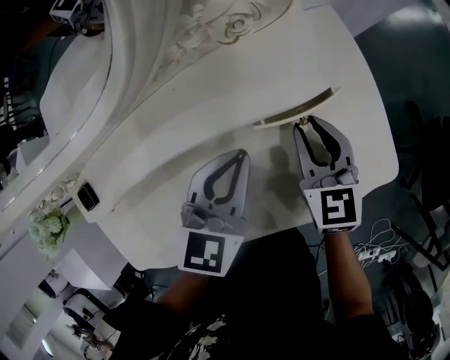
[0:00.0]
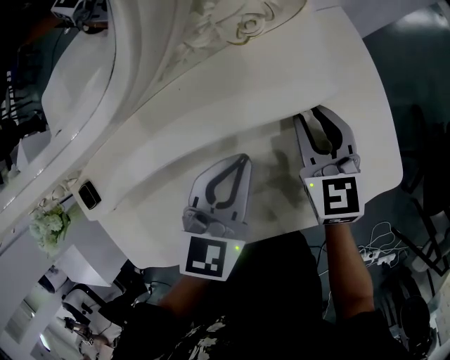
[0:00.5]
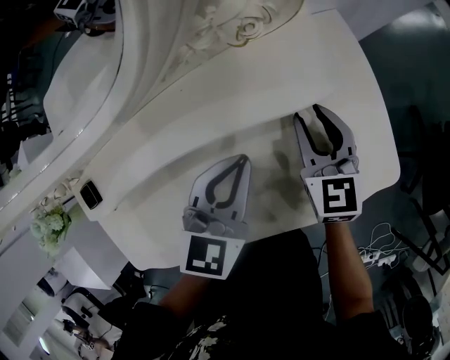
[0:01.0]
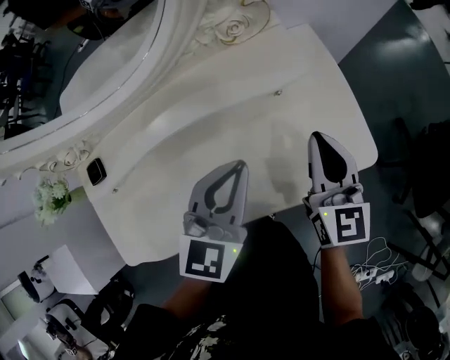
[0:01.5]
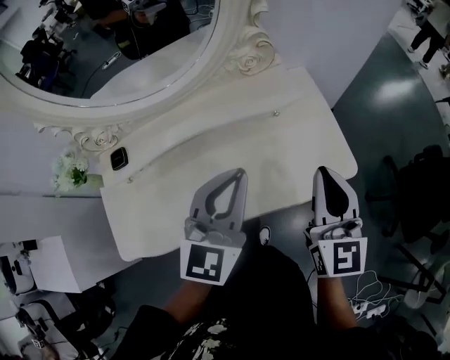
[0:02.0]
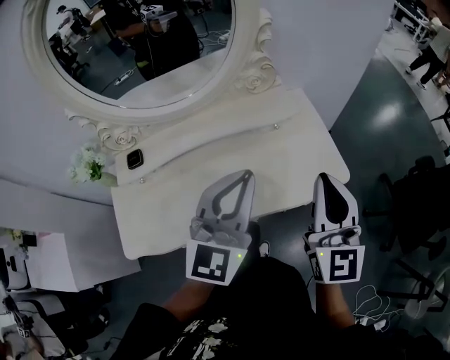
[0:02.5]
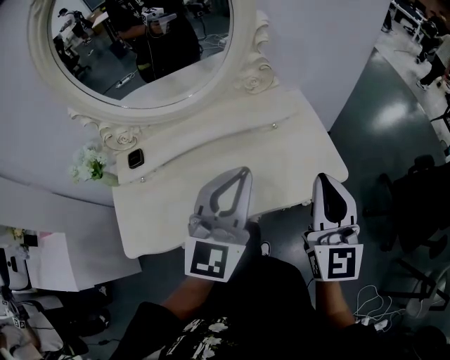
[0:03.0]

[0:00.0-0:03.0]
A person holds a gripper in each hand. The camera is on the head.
0:00.0 to 0:01.5: The two grippers go approximately 10 cm upward and backward. The right gripper closes its fingers.
0:01.5 to 0:03.0: Both grippers travel together upward and backward, approximately 20 cm. The left gripper swivels roughly 20 degrees. Meanwhile the right gripper swivels approximately 20 degrees.

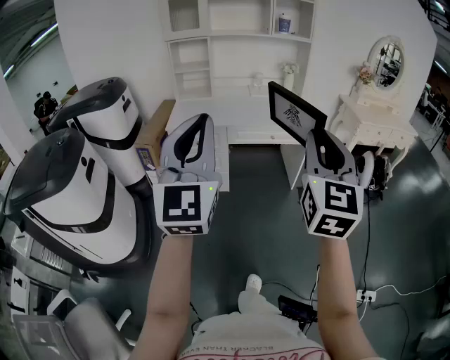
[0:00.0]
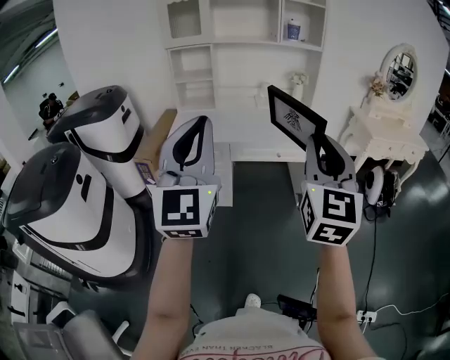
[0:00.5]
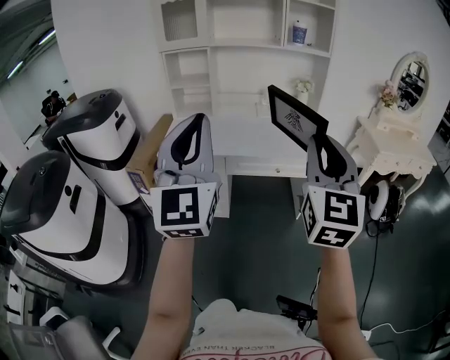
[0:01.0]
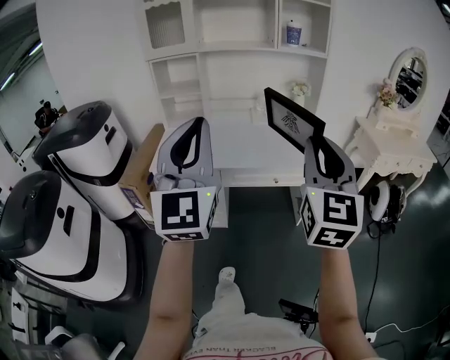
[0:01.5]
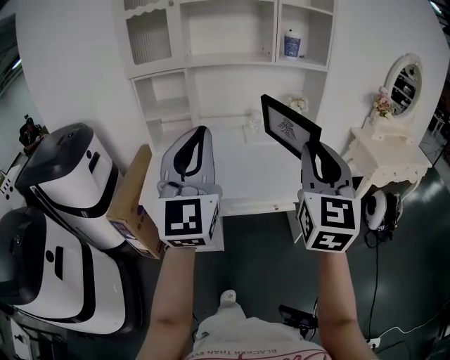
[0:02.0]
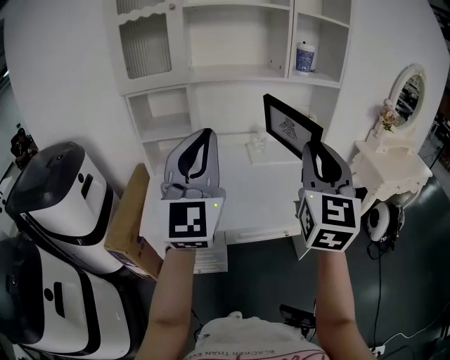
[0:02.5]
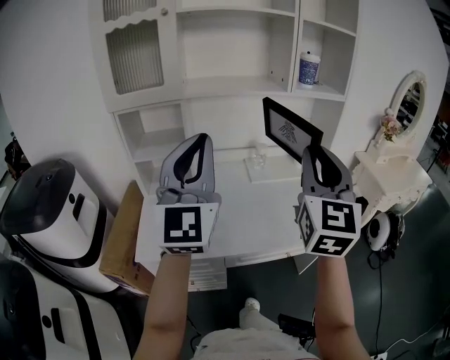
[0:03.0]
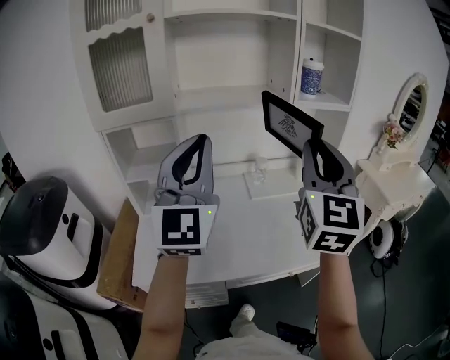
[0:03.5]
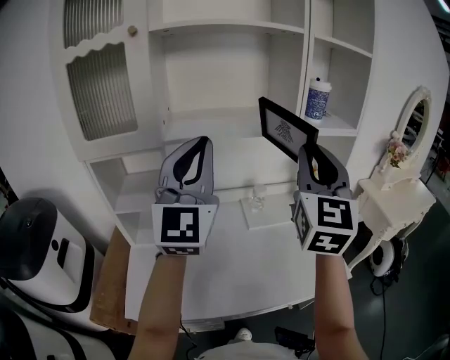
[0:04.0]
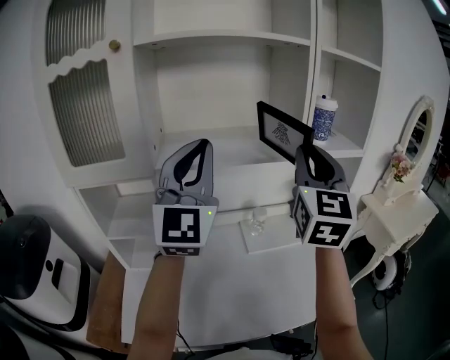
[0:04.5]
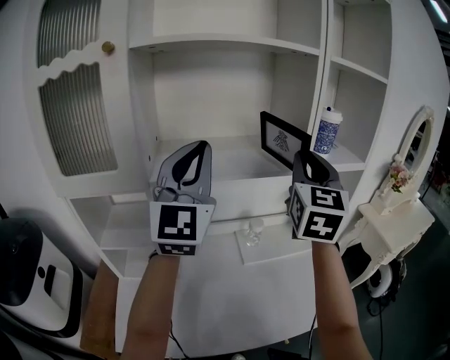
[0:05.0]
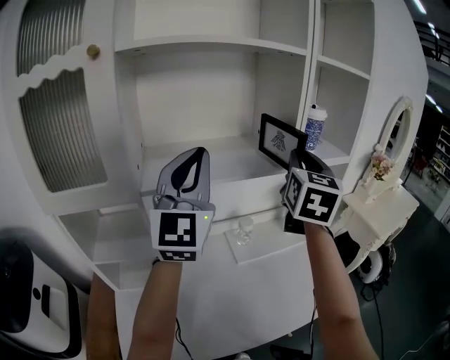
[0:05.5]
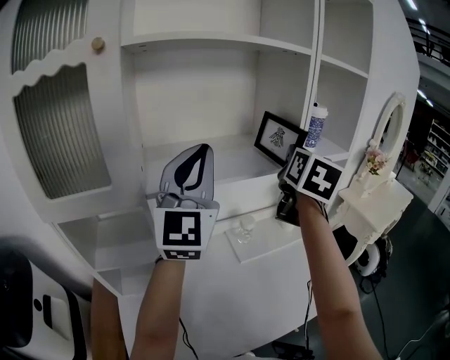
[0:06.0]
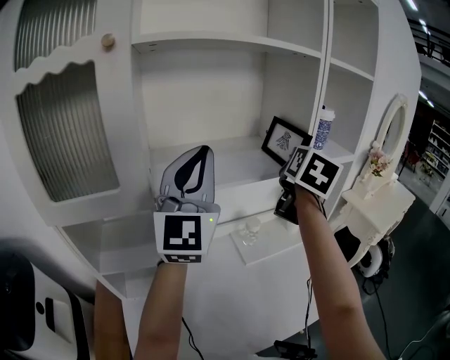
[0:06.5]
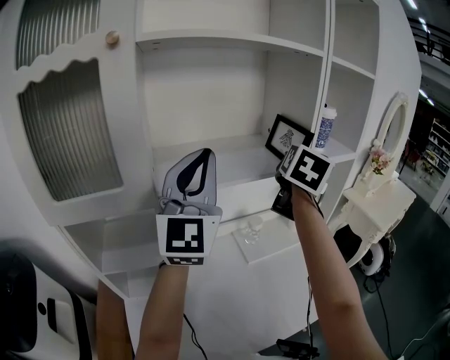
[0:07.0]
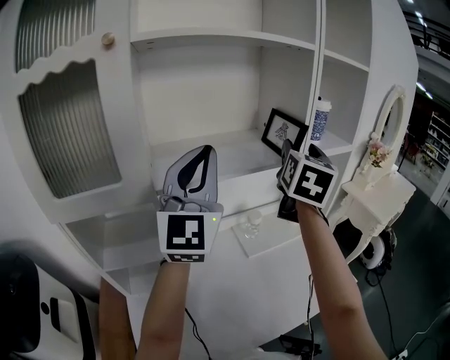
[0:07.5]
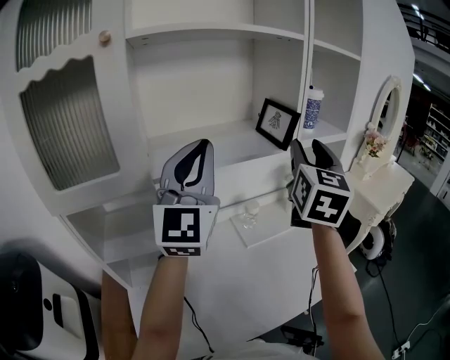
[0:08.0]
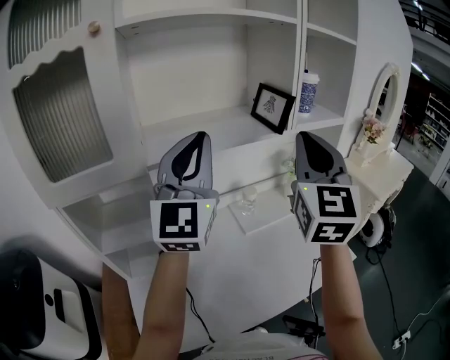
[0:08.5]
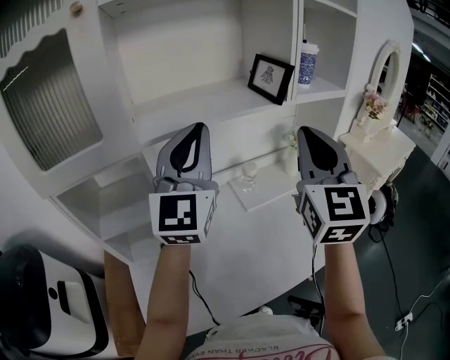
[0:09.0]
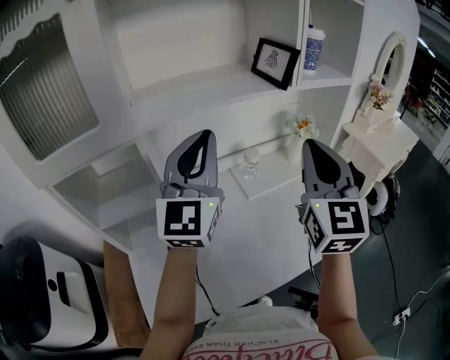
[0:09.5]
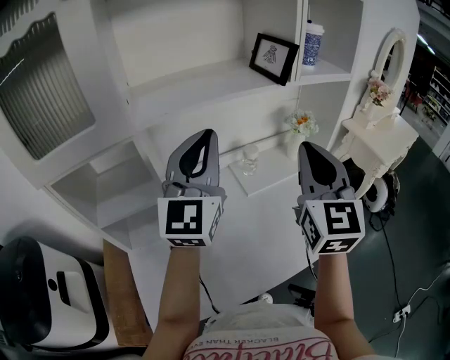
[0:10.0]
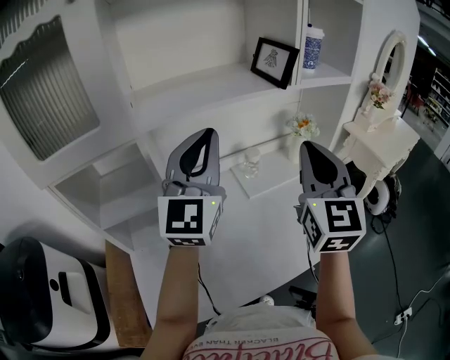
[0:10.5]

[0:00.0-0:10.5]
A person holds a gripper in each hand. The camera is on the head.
0:00.0 to 0:02.0: Both grippers are carried forward, roughly 40 cm.
0:02.0 to 0:04.0: The two grippers go about 40 cm forward.
0:04.0 to 0:06.5: The left gripper travels forward and to the left by roughly 15 cm. Meanwhile the right gripper goes approximately 20 cm forward, and changes its angle by some 40 degrees.
0:06.5 to 0:08.5: The right gripper travels backward by approximately 15 cm, rotates some 40 degrees, and opens, then closes again, while the left gripper shifts by some 5 cm.
0:08.5 to 0:10.5: The two grippers go some 10 cm downward.

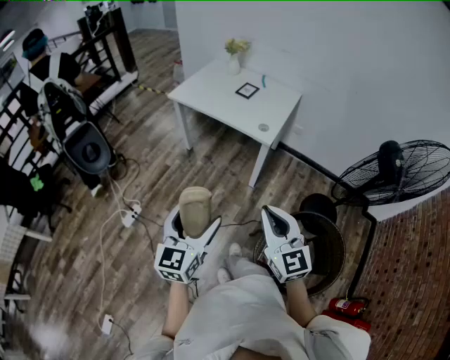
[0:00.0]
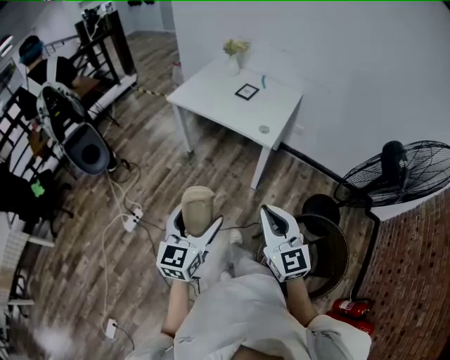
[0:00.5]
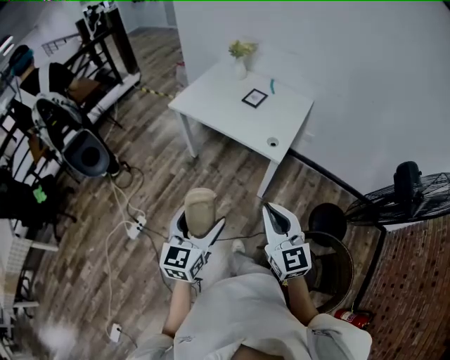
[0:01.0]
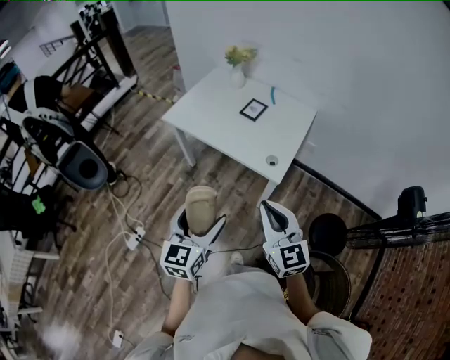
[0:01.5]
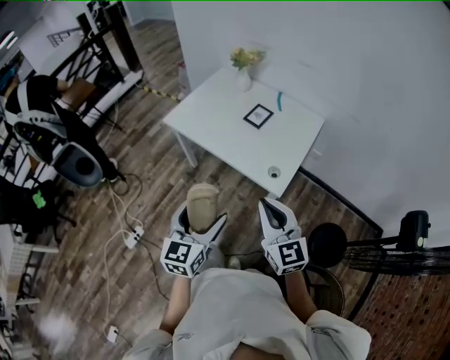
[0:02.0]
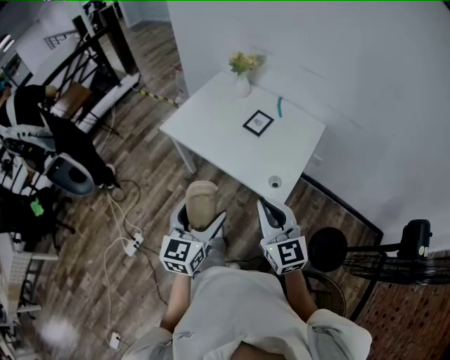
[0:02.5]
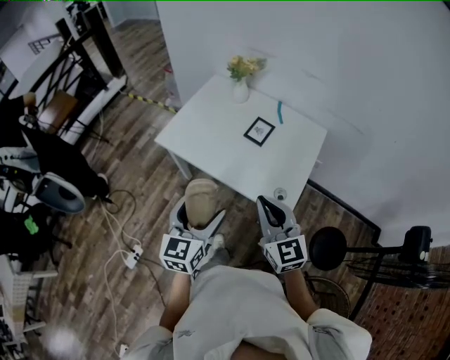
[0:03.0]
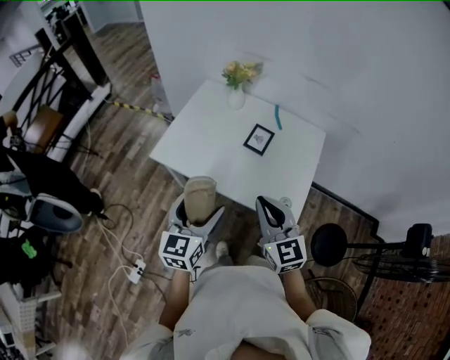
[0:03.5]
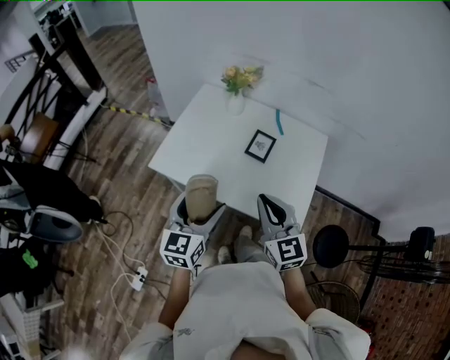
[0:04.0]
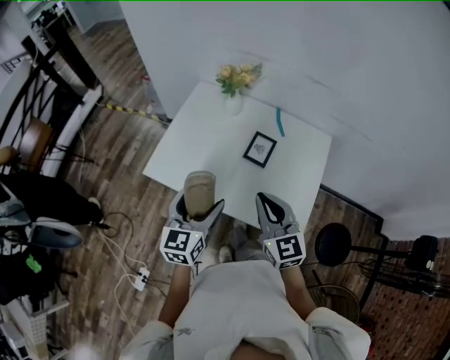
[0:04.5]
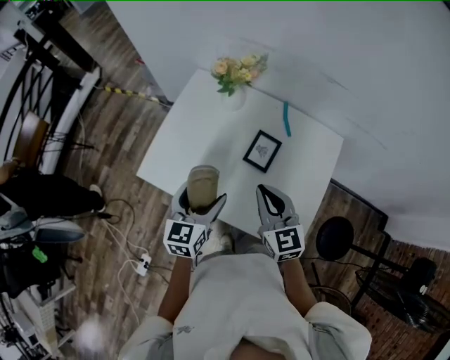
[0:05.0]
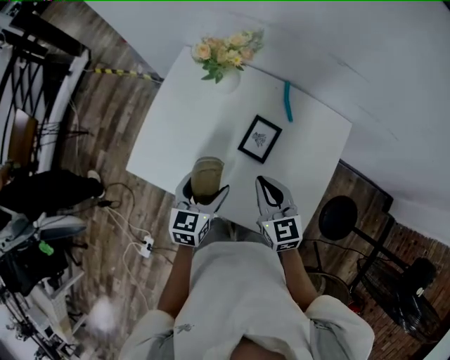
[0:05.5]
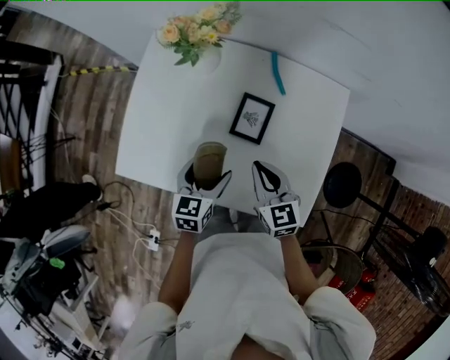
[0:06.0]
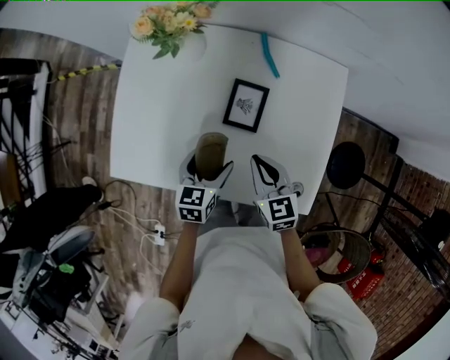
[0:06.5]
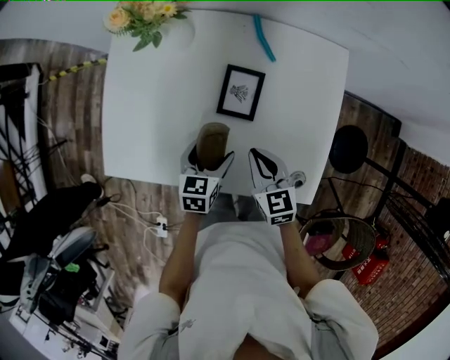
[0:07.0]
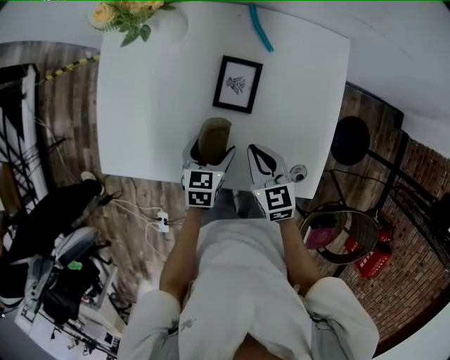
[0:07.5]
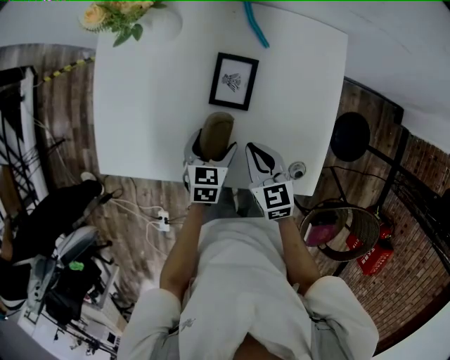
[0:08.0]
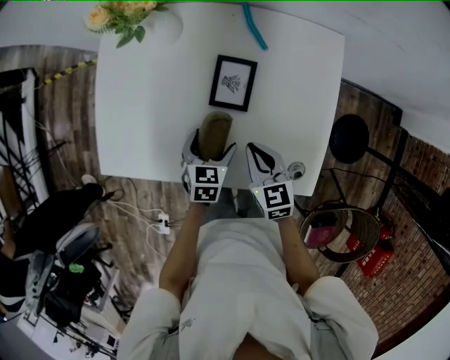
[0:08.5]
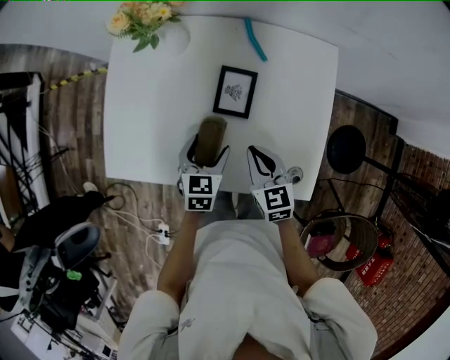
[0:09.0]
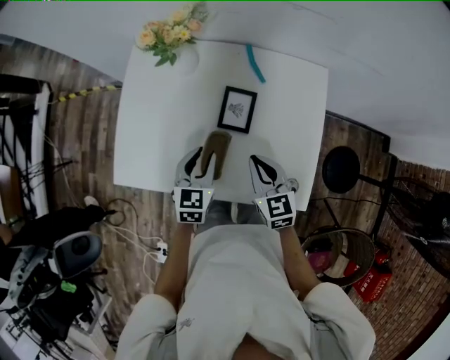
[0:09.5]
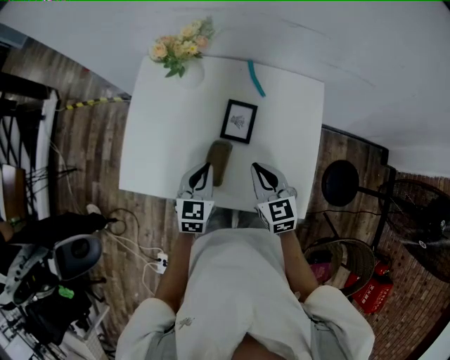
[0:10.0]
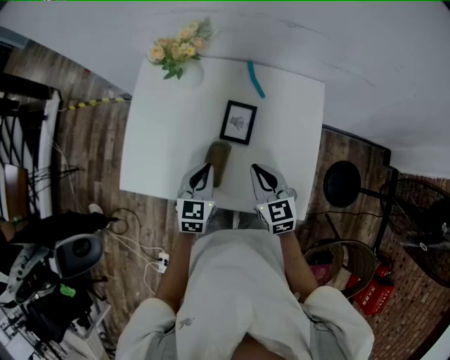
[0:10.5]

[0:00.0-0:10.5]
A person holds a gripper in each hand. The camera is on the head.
0:00.0 to 0:02.0: Both grippers travel together forward, about 35 cm.
0:02.0 to 0:04.0: The two grippers go about 25 cm forward.
0:04.0 to 0:06.5: The right gripper heads downward and forward, covering some 30 cm, and swivels about 30 degrees. The left gripper shifts about 30 cm downward, forward and to the right, and swivels roughly 30 degrees.
0:06.5 to 0:08.5: The right gripper ends up roughly 5 cm from where it was, while the left gripper goes roughly 5 cm downward.
0:08.5 to 0:10.5: The left gripper travels upward by some 10 cm, and closes up, while the right gripper heads upward, covering roughly 10 cm.

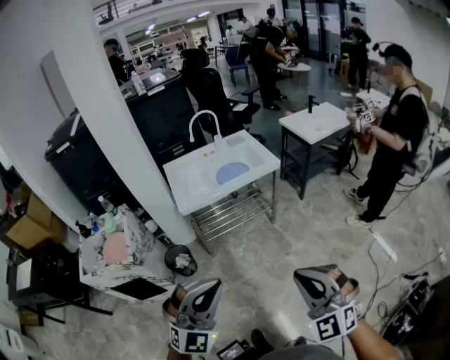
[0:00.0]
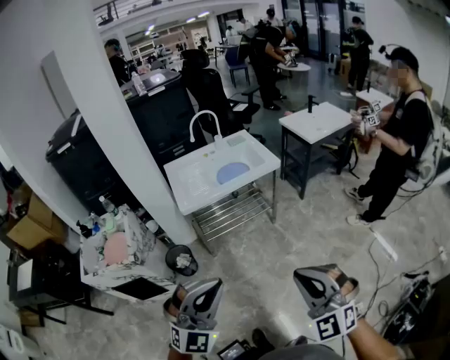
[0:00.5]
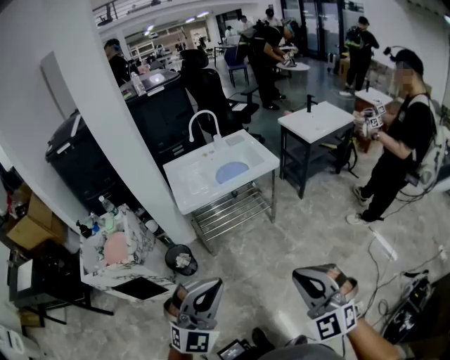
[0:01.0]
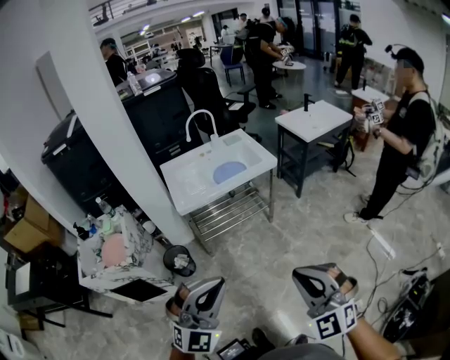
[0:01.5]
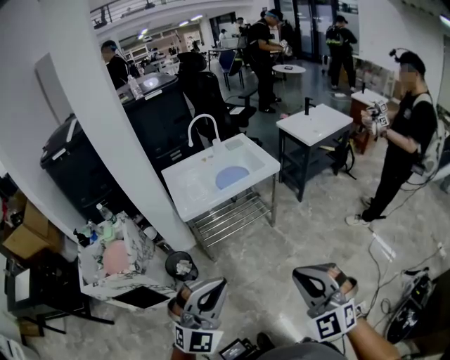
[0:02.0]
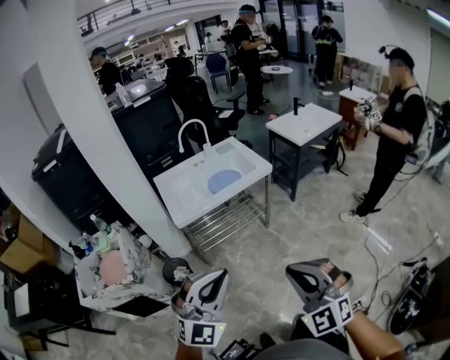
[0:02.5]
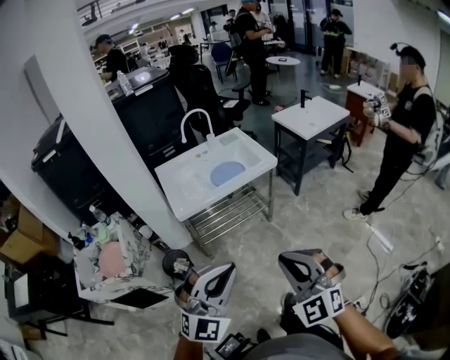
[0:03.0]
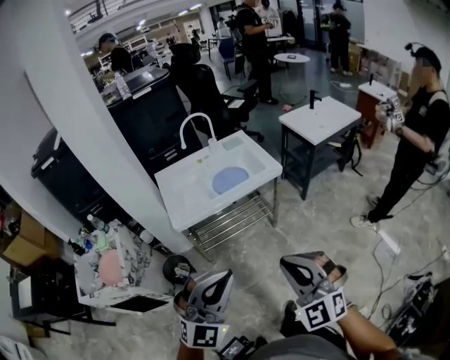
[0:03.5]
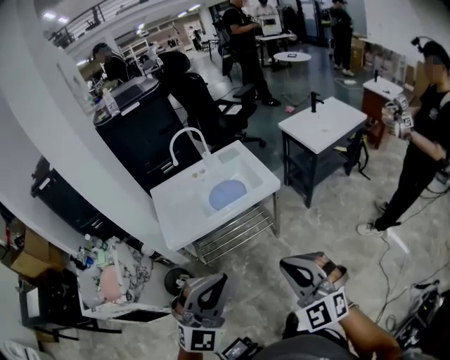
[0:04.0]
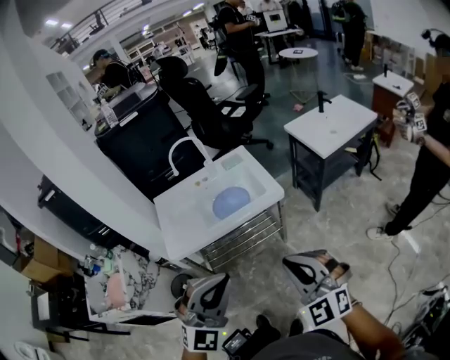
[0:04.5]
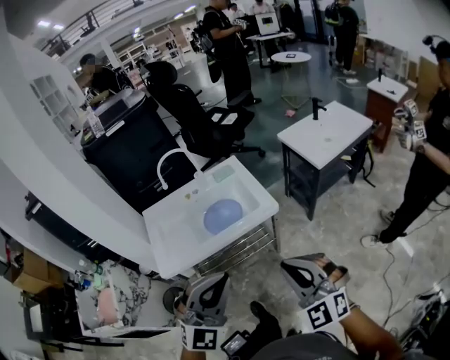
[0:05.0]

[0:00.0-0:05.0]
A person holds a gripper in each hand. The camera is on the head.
0:00.0 to 0:02.5: The right gripper travels to the left by roughly 5 cm; the left gripper moves forward, some 5 cm.
0:02.5 to 0:05.0: The left gripper shifts approximately 35 cm forward and to the right. The right gripper heads forward, covering about 35 cm.
